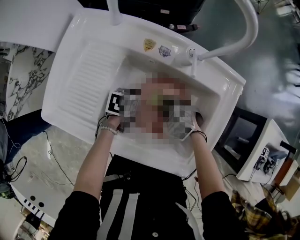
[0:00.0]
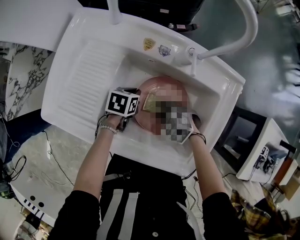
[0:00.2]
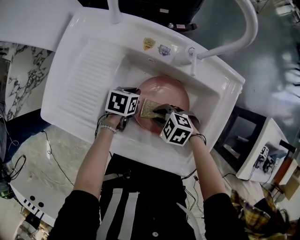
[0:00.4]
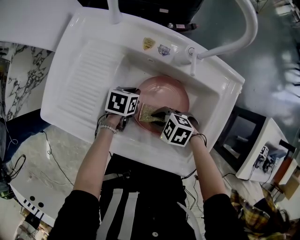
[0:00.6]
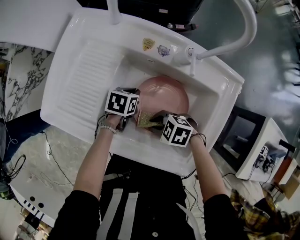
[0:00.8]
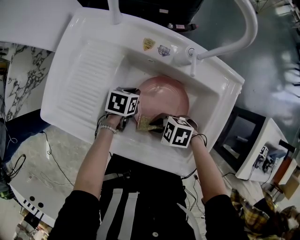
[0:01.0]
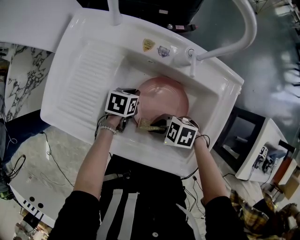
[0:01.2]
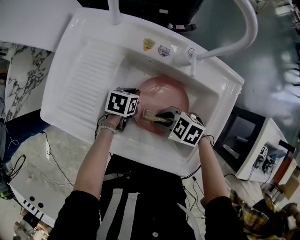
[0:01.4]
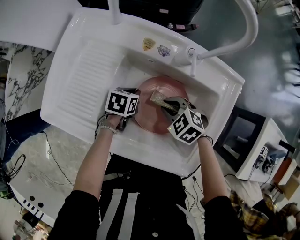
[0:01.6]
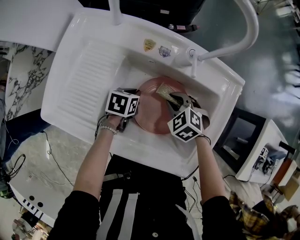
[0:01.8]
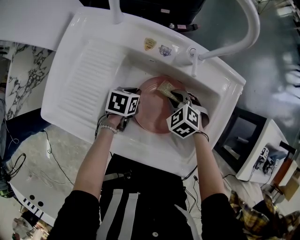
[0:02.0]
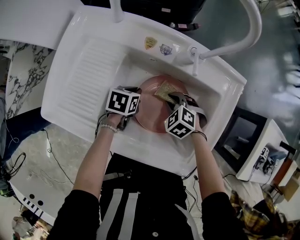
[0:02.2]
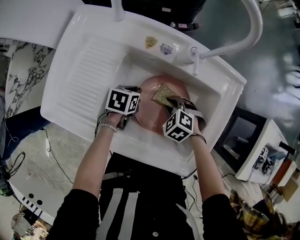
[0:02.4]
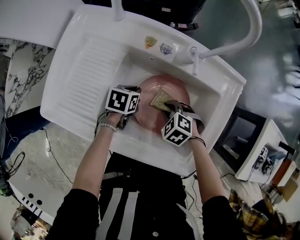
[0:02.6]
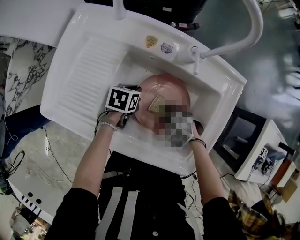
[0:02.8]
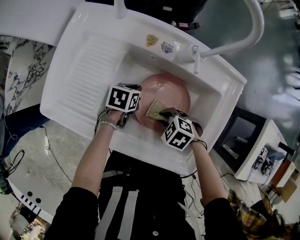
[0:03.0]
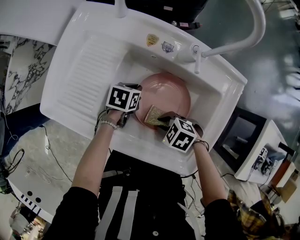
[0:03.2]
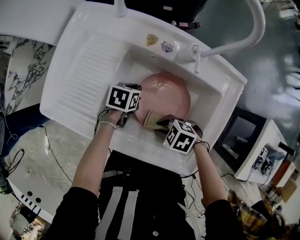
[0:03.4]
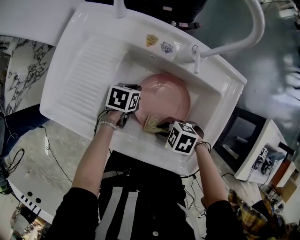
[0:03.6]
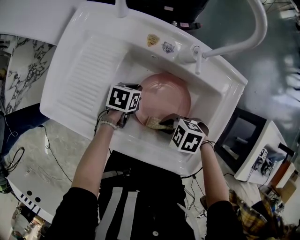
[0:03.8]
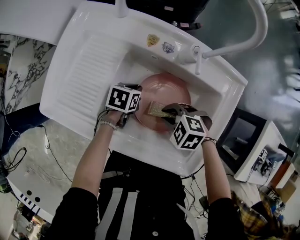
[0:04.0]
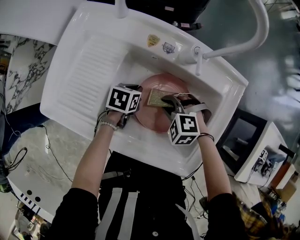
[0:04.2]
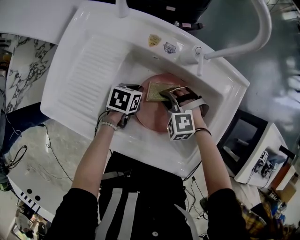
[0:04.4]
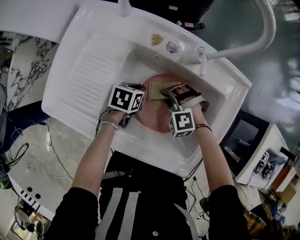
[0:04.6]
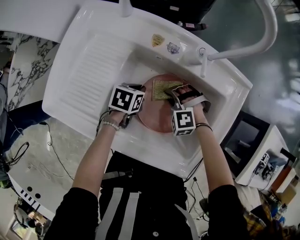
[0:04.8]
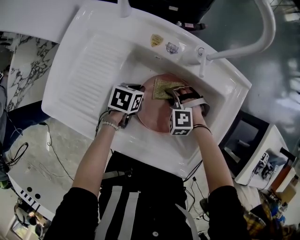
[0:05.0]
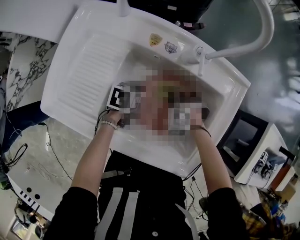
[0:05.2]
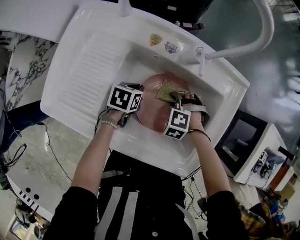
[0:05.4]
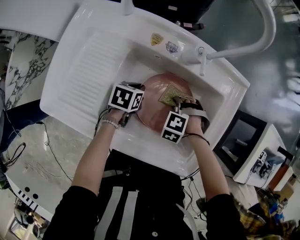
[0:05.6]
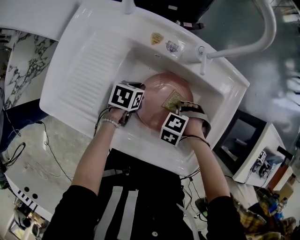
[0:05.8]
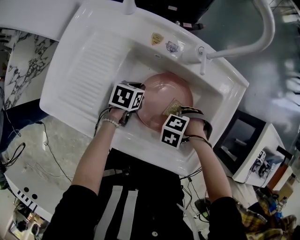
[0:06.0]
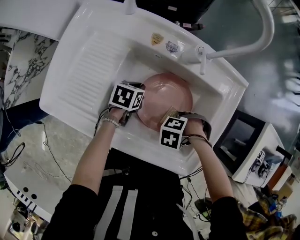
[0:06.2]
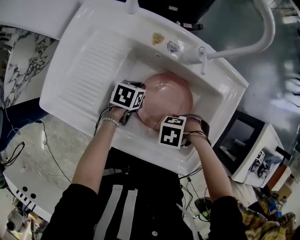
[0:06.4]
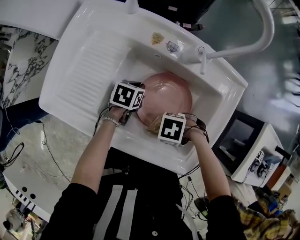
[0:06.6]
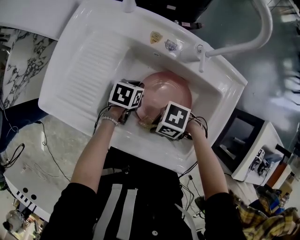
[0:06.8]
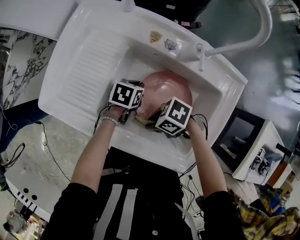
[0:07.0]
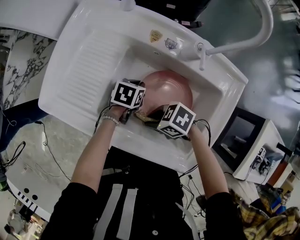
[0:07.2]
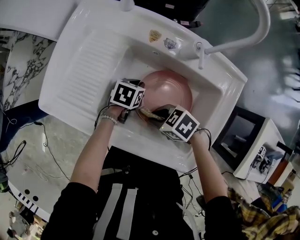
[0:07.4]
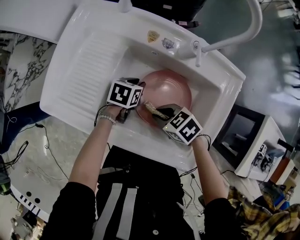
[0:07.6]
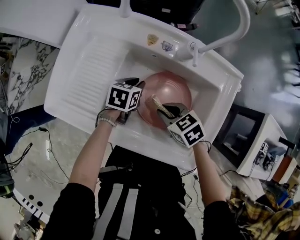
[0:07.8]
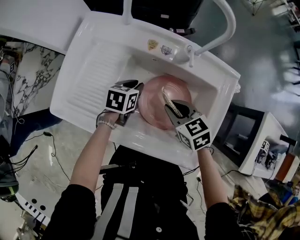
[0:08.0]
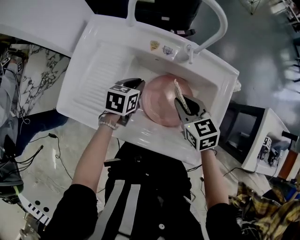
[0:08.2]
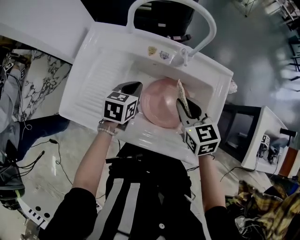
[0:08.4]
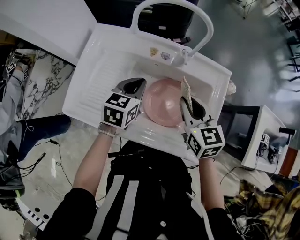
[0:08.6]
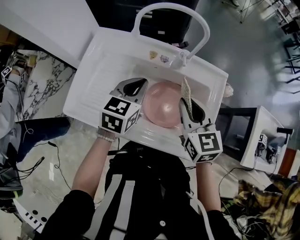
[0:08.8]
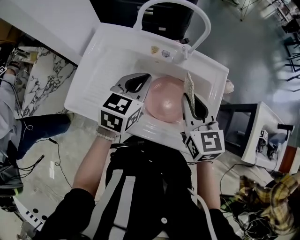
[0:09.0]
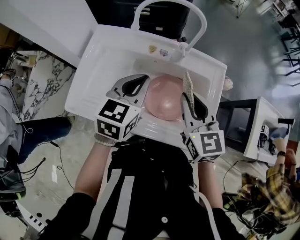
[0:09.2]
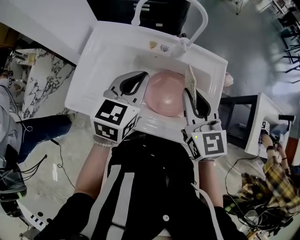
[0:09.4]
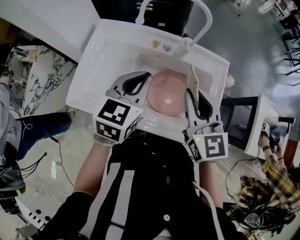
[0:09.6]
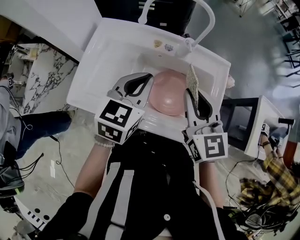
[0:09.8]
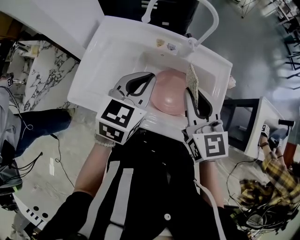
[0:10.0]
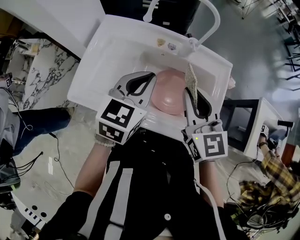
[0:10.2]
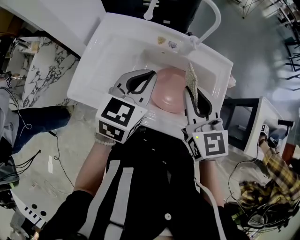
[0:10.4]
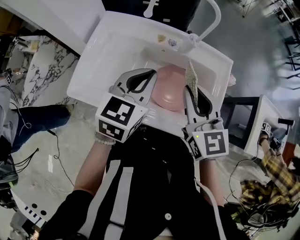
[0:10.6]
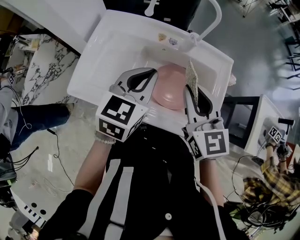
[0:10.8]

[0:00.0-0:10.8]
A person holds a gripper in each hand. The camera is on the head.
0:01.6 to 0:03.0: The right gripper shifts by some 10 cm.
0:03.0 to 0:04.6: The right gripper moves some 10 cm, and rolls counterclockwise, seen from behind, by about 50 degrees.
0:04.6 to 0:06.2: The right gripper ends up some 15 cm from where it was, and swivels some 60 degrees.
0:06.2 to 0:07.8: The right gripper changes place by some 10 cm, and turns by approximately 70 degrees.
0:07.8 to 0:09.2: Both grippers move upward, roughly 25 cm. The left gripper rotates approximately 40 degrees. Meanwhile the right gripper angles its fingers upward, by approximately 30 degrees.
0:09.2 to 0:10.8: The grippers make only small movements.

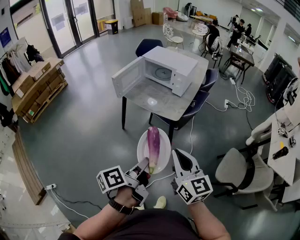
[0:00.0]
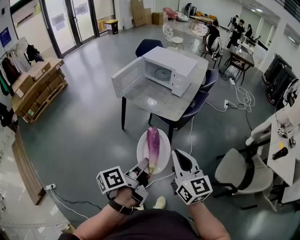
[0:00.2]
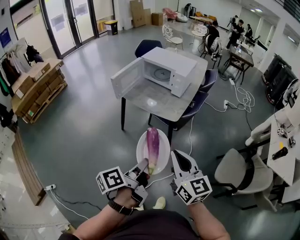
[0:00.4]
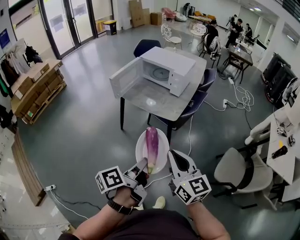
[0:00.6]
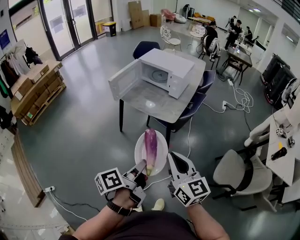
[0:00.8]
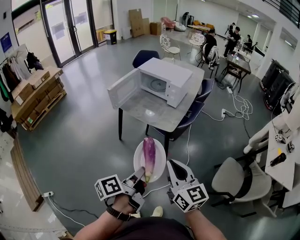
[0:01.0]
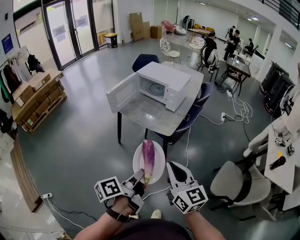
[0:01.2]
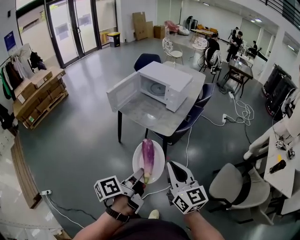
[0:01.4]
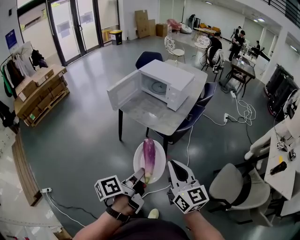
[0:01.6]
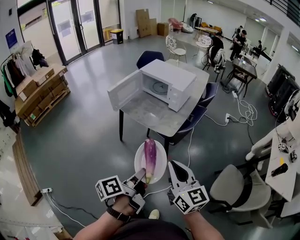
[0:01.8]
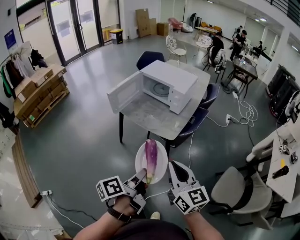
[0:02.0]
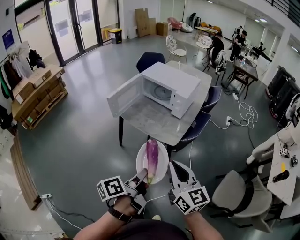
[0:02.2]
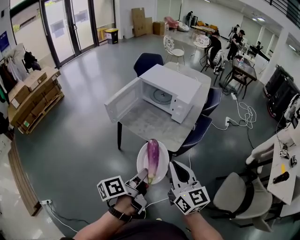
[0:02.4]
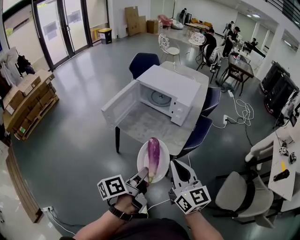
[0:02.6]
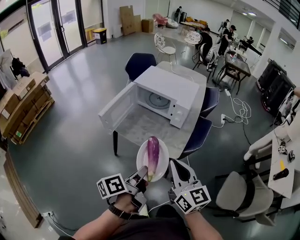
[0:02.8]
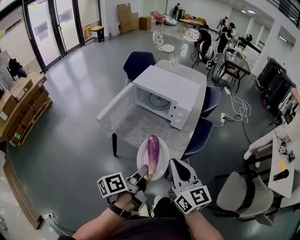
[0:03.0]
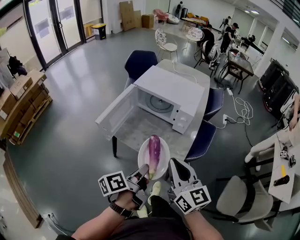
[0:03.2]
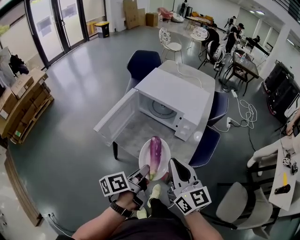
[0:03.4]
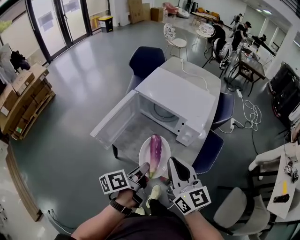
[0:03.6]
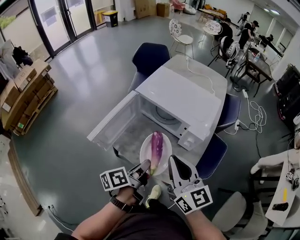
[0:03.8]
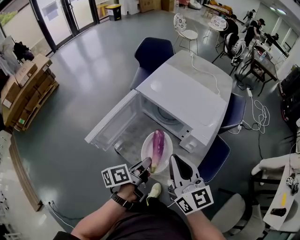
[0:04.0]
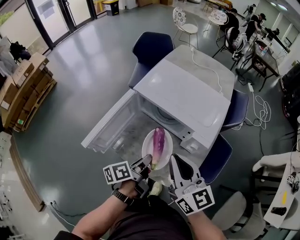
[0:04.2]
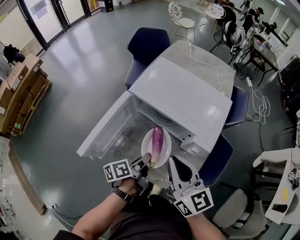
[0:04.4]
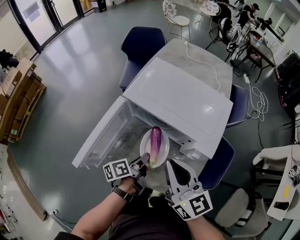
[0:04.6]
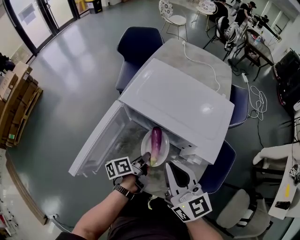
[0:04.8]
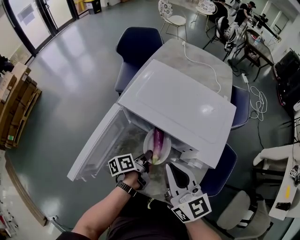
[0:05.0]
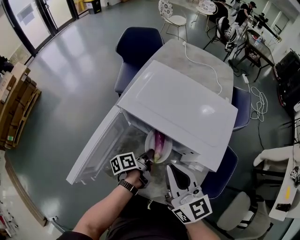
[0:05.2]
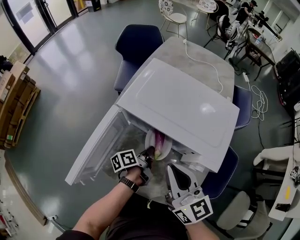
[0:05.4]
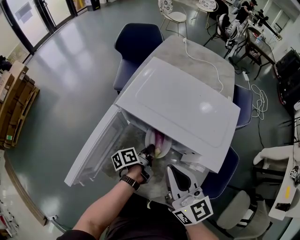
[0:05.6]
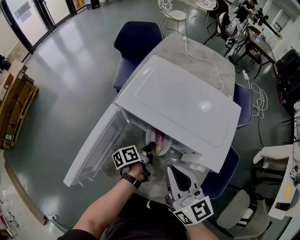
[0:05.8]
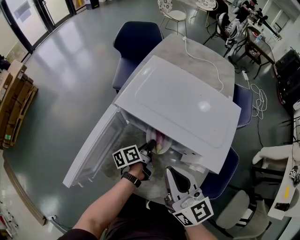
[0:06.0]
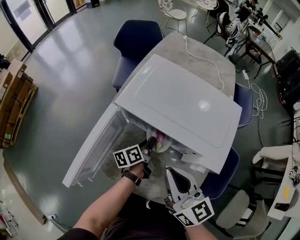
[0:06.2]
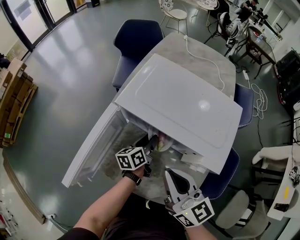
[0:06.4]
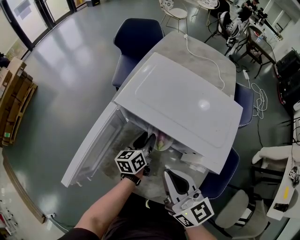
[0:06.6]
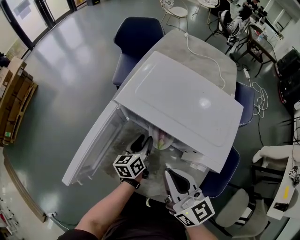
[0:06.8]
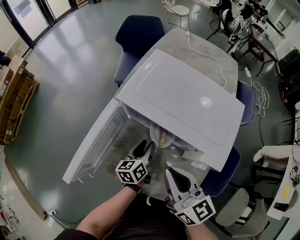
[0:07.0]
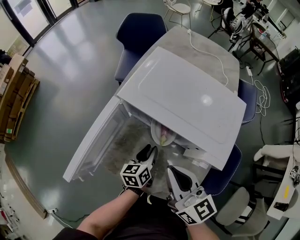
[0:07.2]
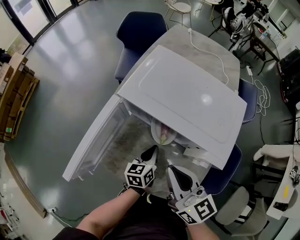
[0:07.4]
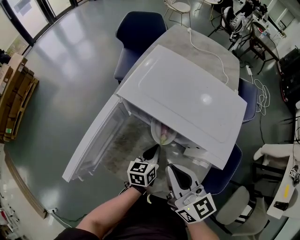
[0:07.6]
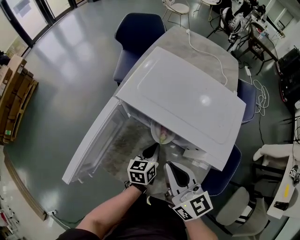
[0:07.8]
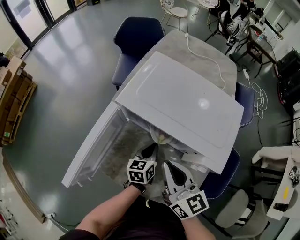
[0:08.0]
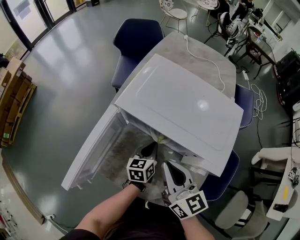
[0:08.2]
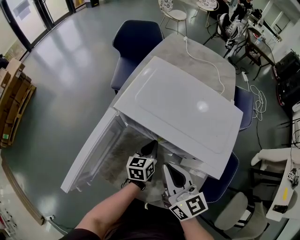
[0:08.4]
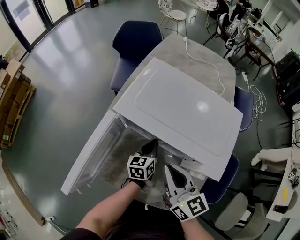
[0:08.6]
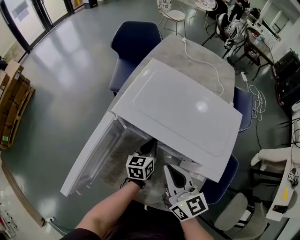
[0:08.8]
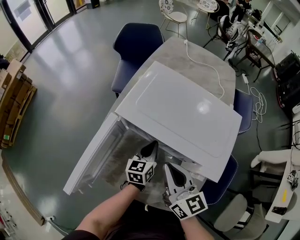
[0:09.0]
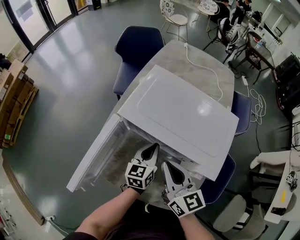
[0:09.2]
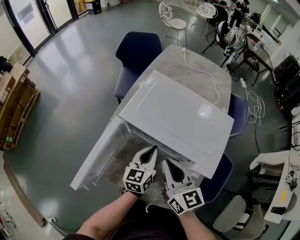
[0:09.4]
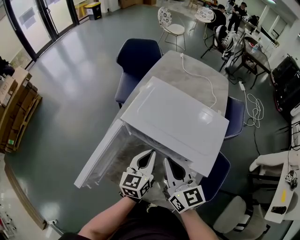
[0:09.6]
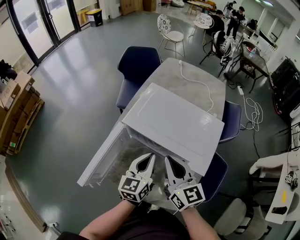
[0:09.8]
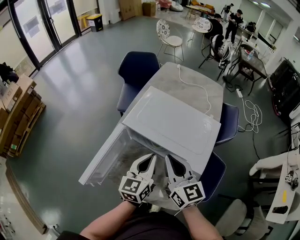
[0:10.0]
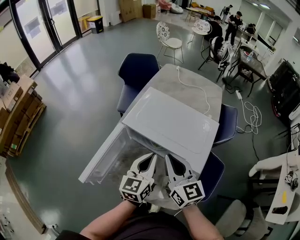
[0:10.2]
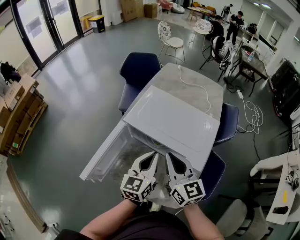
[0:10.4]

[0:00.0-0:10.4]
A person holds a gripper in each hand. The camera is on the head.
0:00.0 to 0:01.4: The right gripper changes place by some 5 cm.
0:01.4 to 0:03.0: Both grippers travel together forward, about 25 cm.
0:03.0 to 0:04.4: The left gripper goes some 35 cm forward and downward, while the right gripper travels forward by approximately 30 cm.
0:04.4 to 0:06.0: The right gripper shifts about 10 cm downward and forward. Meanwhile the left gripper moves forward and downward, about 20 cm.
0:06.0 to 0:07.4: The left gripper is displaced backward by some 5 cm, turns by about 40 degrees, and opens and closes again.
0:07.4 to 0:09.0: The two grippers go roughly 5 cm forward.
0:09.0 to 0:10.4: The right gripper heads upward, covering approximately 10 cm. The left gripper travels upward and backward by about 25 cm.

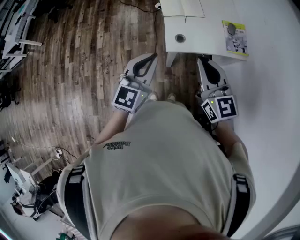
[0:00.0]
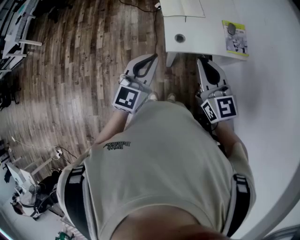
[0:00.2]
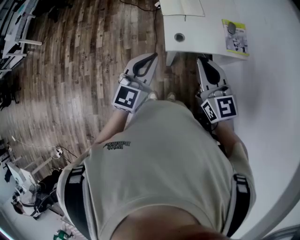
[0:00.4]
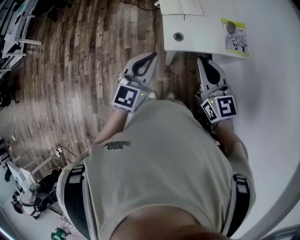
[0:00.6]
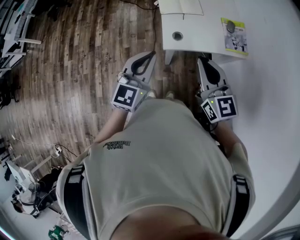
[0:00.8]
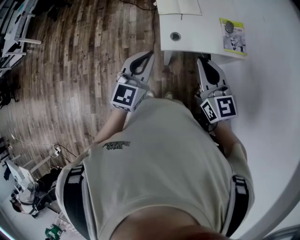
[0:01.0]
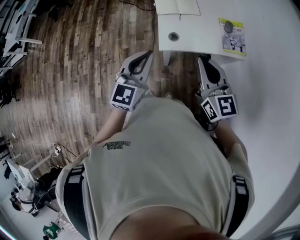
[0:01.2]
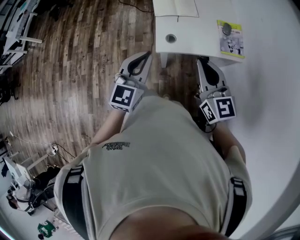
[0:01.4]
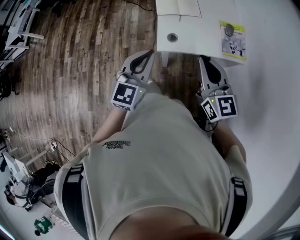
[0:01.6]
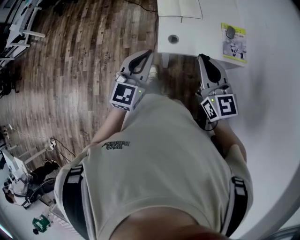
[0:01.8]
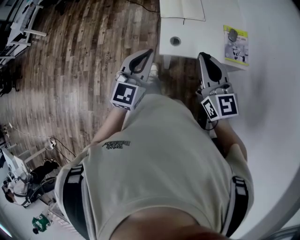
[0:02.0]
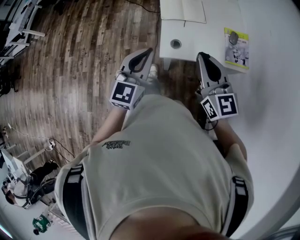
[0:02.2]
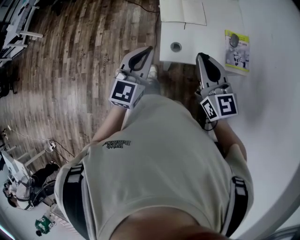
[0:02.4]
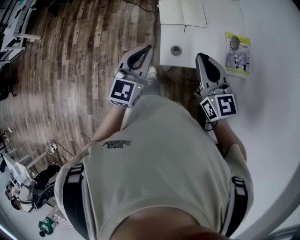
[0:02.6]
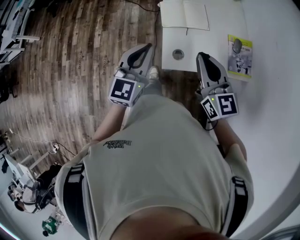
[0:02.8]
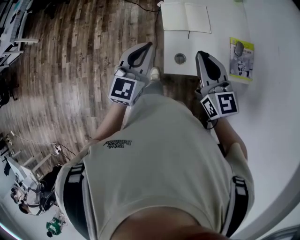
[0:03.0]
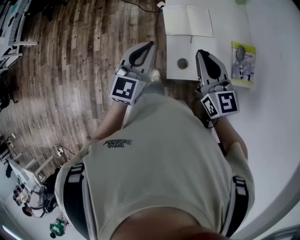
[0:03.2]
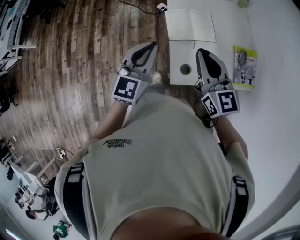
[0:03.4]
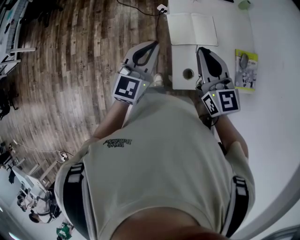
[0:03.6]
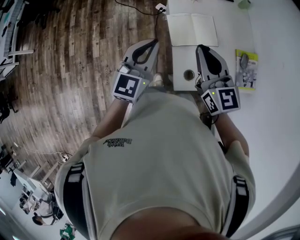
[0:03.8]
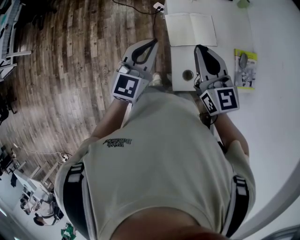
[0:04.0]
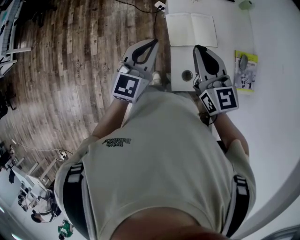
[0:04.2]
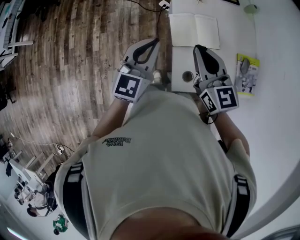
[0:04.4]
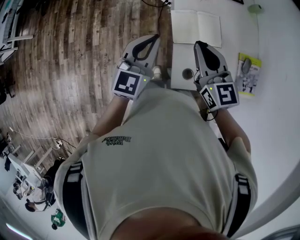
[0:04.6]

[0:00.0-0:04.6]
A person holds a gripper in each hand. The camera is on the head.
0:00.0 to 0:01.6: The grippers both shift to the right by roughly 5 cm.
0:01.6 to 0:03.0: Both grippers move forward, roughly 20 cm.
0:03.0 to 0:04.6: The left gripper moves forward, some 15 cm. Meanwhile the right gripper moves forward and to the left, about 15 cm.